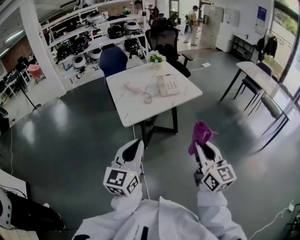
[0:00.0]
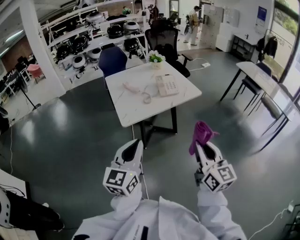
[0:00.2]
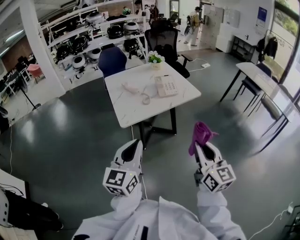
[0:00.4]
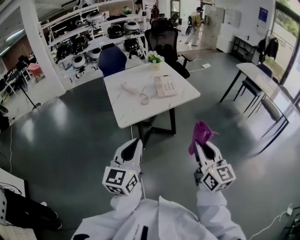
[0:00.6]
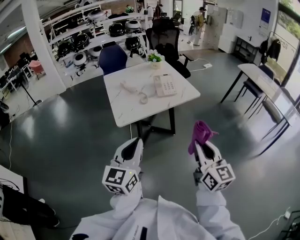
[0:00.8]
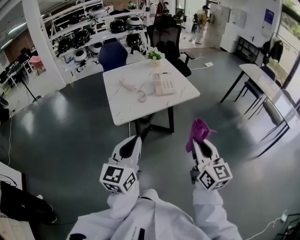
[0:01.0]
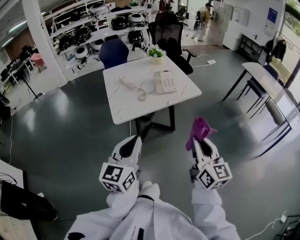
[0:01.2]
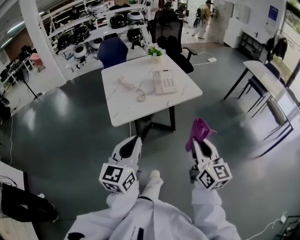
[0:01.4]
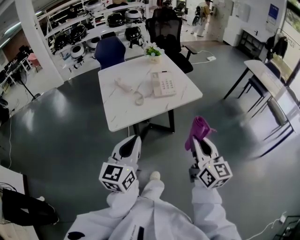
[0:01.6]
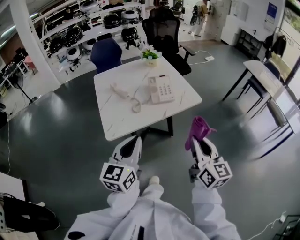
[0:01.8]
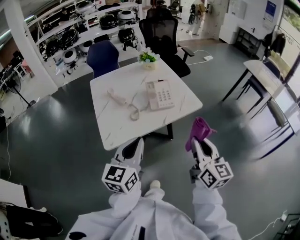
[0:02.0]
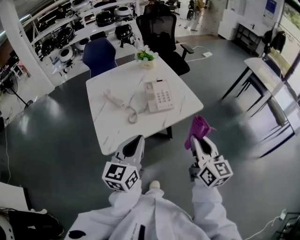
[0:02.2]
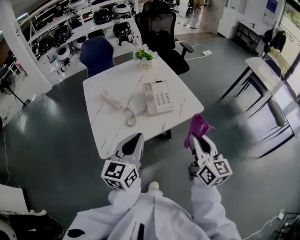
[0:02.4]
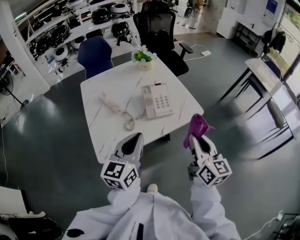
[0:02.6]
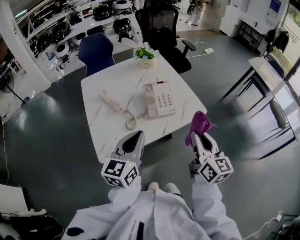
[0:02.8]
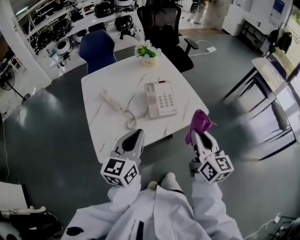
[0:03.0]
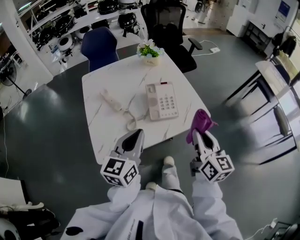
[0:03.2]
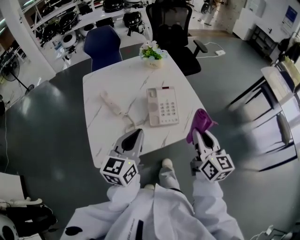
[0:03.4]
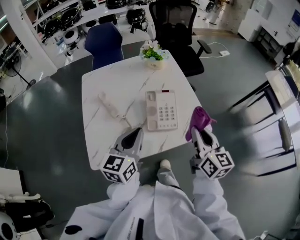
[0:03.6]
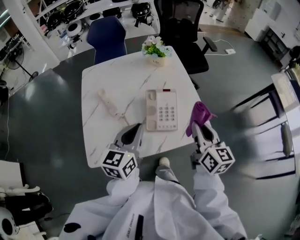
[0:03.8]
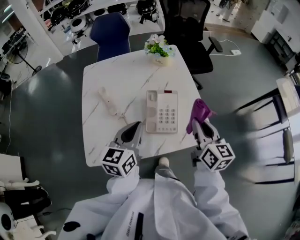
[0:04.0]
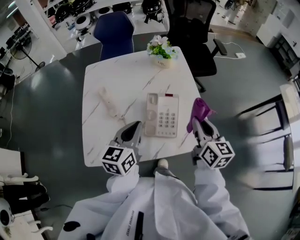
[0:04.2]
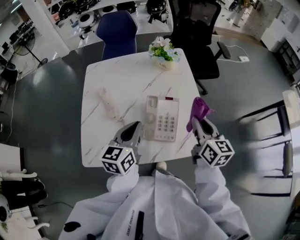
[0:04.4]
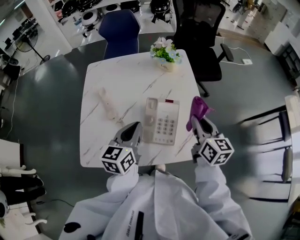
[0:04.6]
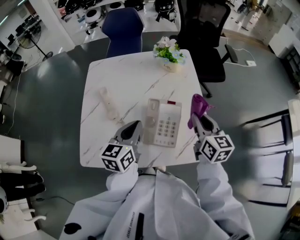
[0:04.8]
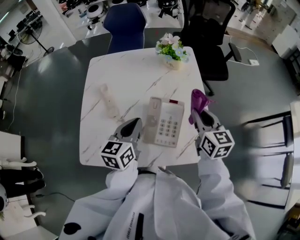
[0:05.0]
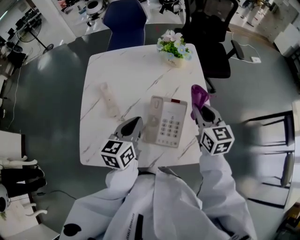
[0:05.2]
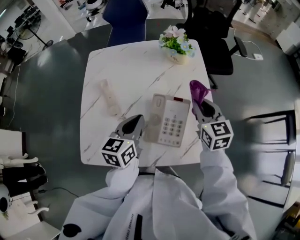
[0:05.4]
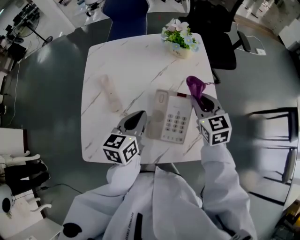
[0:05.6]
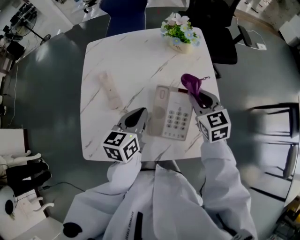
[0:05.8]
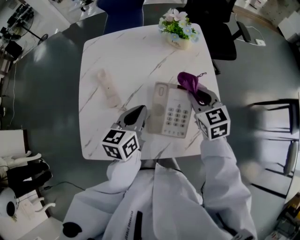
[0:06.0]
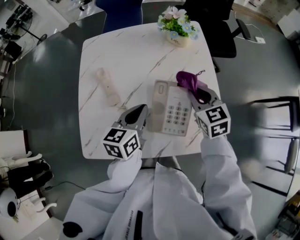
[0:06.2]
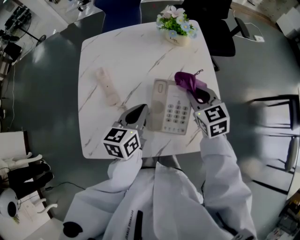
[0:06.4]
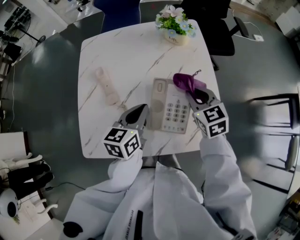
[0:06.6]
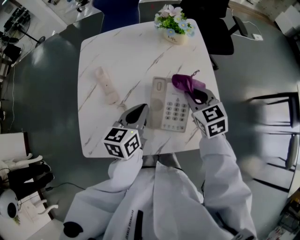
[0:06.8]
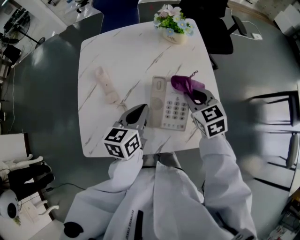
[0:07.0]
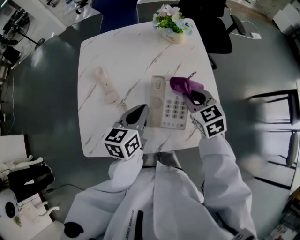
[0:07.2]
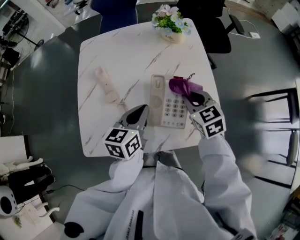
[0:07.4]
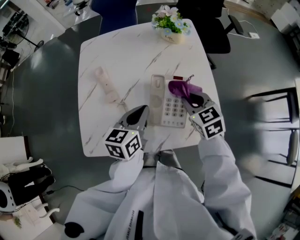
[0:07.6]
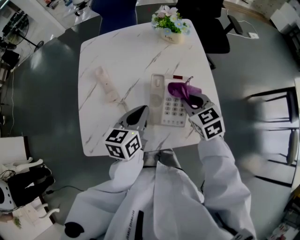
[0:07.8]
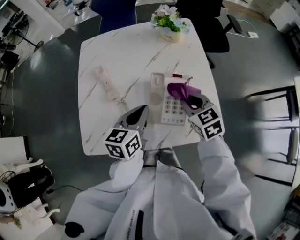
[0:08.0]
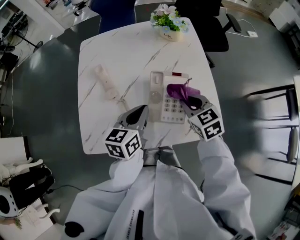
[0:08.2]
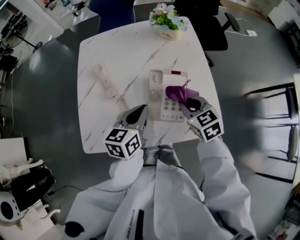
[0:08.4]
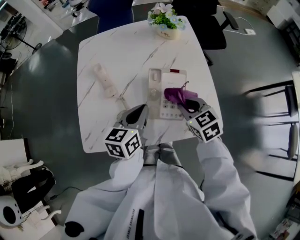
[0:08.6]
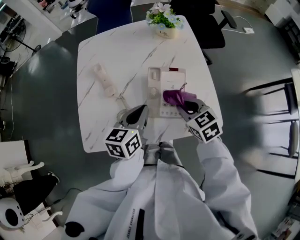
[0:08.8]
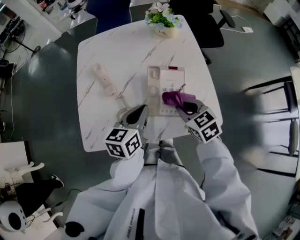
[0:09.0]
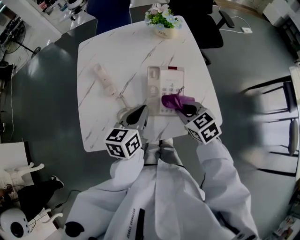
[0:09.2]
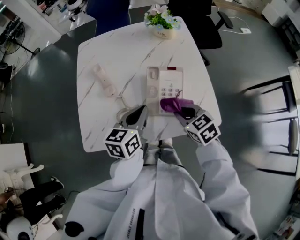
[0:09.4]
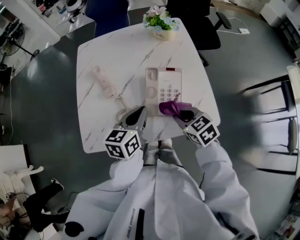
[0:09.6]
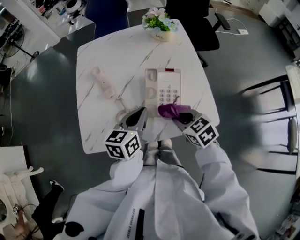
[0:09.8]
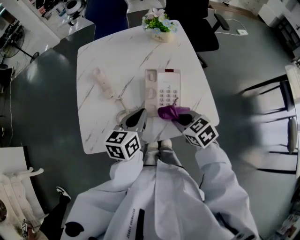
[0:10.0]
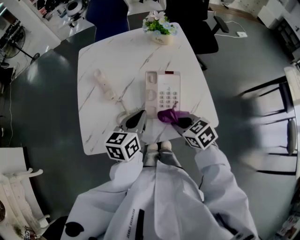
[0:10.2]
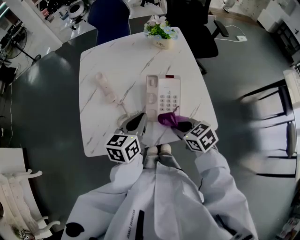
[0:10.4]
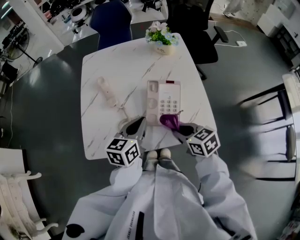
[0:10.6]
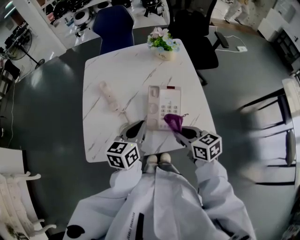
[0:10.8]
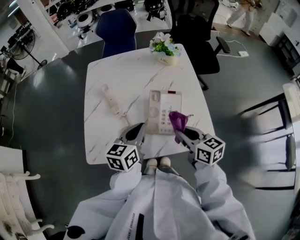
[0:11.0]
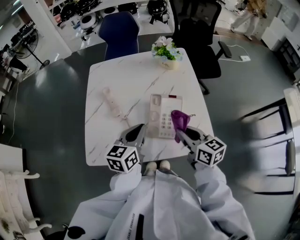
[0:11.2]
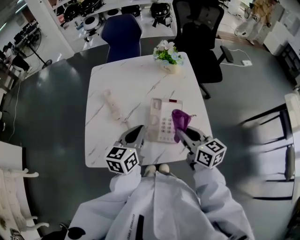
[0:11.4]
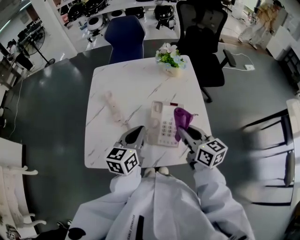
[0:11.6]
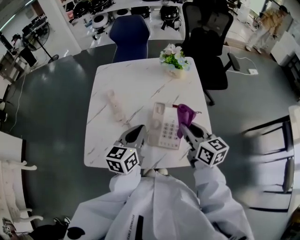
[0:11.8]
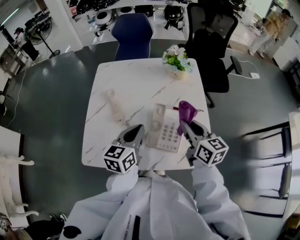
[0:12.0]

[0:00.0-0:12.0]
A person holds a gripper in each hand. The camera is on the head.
0.0 to 1.6 s: Both grippers travel together forward and to the right, about 15 cm.
1.6 to 3.0 s: The grippers both shift forward by some 25 cm.
3.0 to 4.4 s: The two grippers go some 20 cm forward. The left gripper turns by some 20 degrees.
4.4 to 6.0 s: The right gripper goes about 15 cm forward, downward and to the left, and turns by approximately 40 degrees. The left gripper is displaced downward and forward by approximately 10 cm.
6.0 to 7.6 s: The right gripper goes roughly 5 cm backward.
7.6 to 9.0 s: The right gripper heads backward, covering about 10 cm.
9.0 to 10.4 s: The right gripper heads backward, covering some 5 cm.
10.4 to 12.0 s: The right gripper shifts some 20 cm forward, upward and to the right, and turns by roughly 40 degrees. Meanwhile the left gripper is displaced forward by approximately 5 cm.

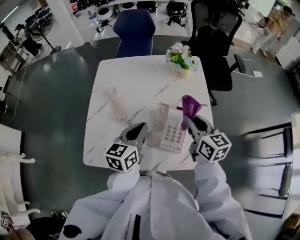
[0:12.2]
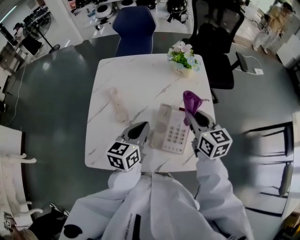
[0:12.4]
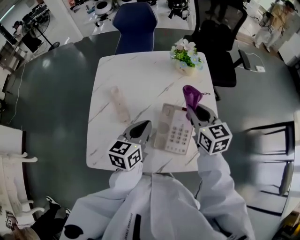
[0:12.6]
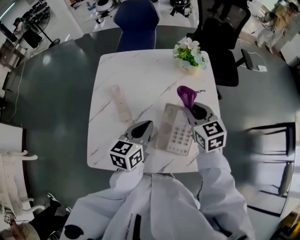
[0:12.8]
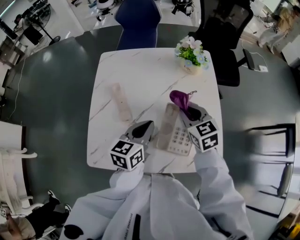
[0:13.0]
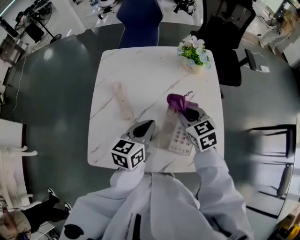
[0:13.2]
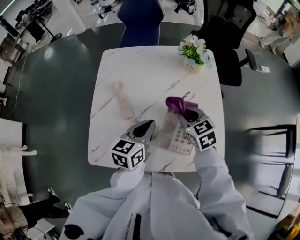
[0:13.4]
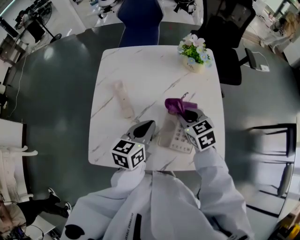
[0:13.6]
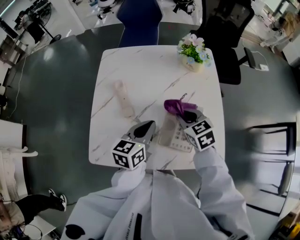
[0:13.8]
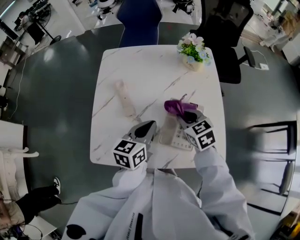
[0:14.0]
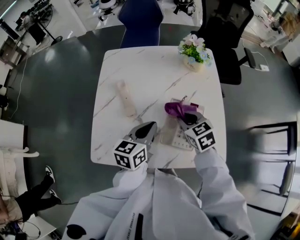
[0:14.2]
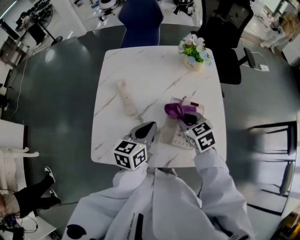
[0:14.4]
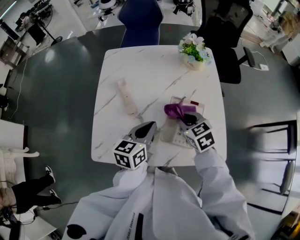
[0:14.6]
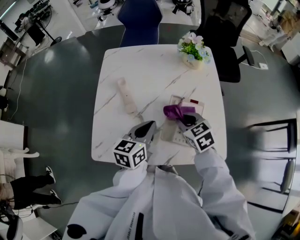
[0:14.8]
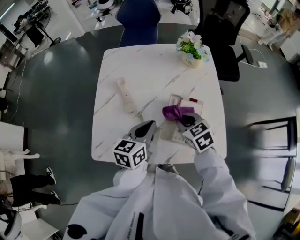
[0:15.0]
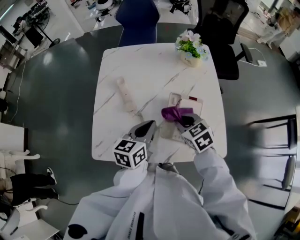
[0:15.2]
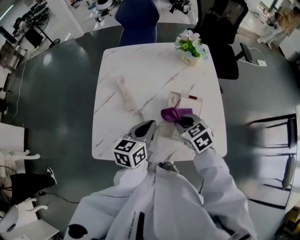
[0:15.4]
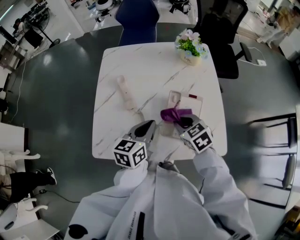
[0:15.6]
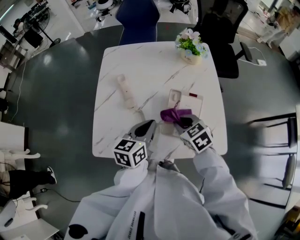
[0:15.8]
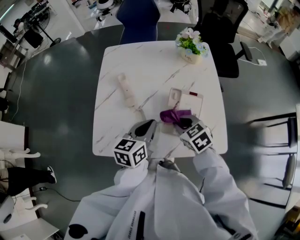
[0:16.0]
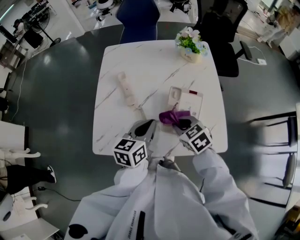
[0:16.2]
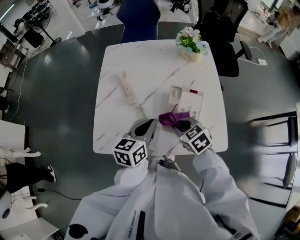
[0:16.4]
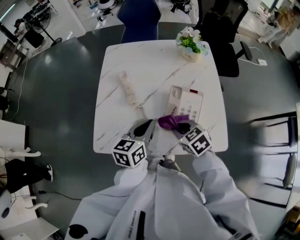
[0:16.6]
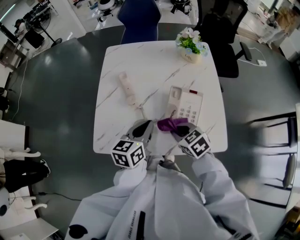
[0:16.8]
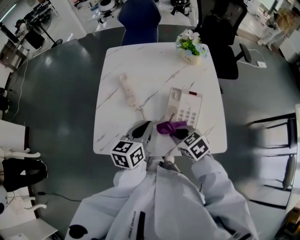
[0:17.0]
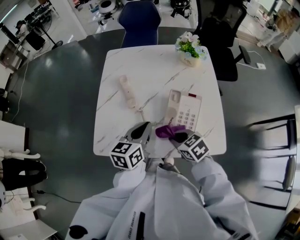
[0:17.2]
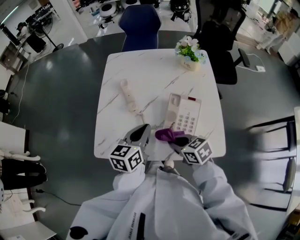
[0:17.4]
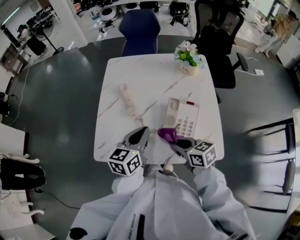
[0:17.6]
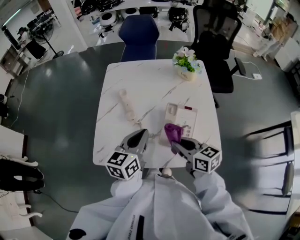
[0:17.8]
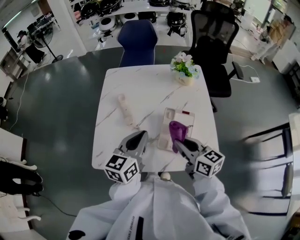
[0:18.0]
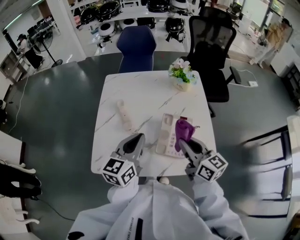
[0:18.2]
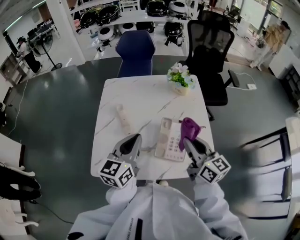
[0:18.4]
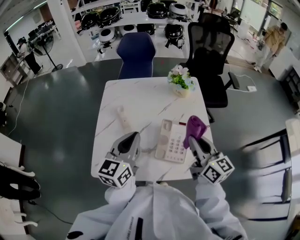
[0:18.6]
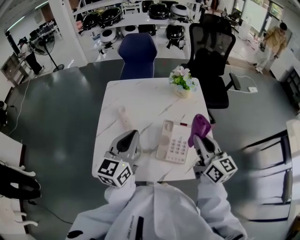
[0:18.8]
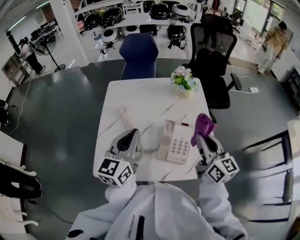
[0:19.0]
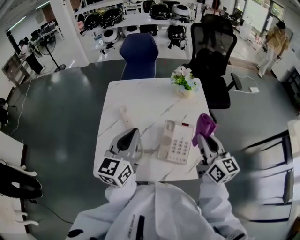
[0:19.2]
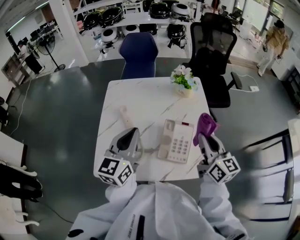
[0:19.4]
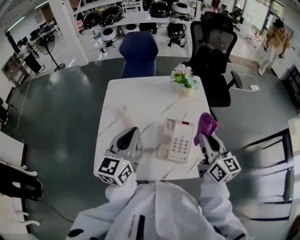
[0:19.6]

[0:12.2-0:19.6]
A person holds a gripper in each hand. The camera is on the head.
12.2 to 13.6 s: The right gripper moves downward and to the left, roughly 10 cm, and turns by about 30 degrees.
13.6 to 15.2 s: The right gripper is displaced backward by roughly 5 cm.
15.2 to 16.6 s: The right gripper travels backward by some 5 cm.
16.6 to 18.2 s: The left gripper is displaced upward by about 10 cm. The right gripper travels upward and to the right by about 15 cm, and points its fingers approximately 40 degrees further upward.
18.2 to 19.6 s: The right gripper shifts some 5 cm to the right, while the left gripper shifts roughly 5 cm upward.

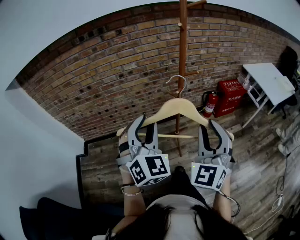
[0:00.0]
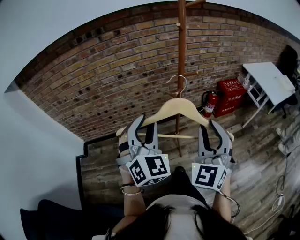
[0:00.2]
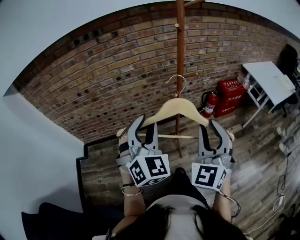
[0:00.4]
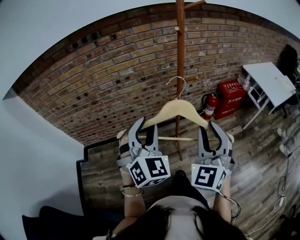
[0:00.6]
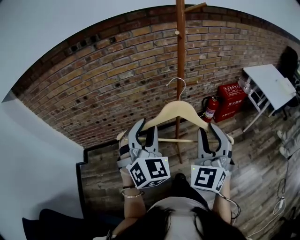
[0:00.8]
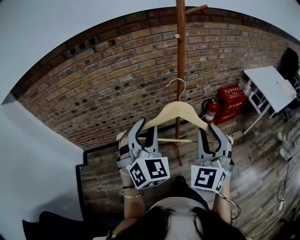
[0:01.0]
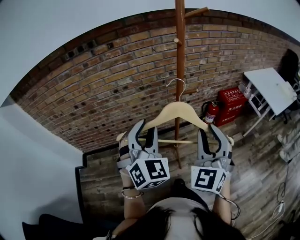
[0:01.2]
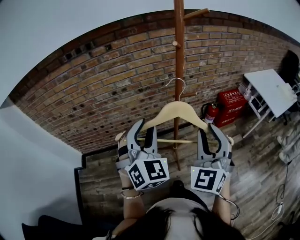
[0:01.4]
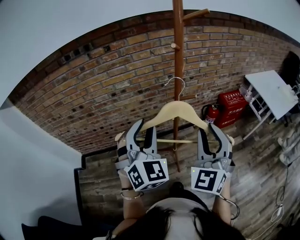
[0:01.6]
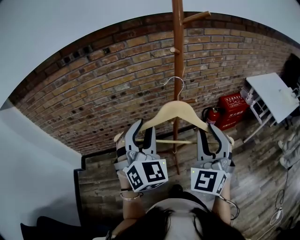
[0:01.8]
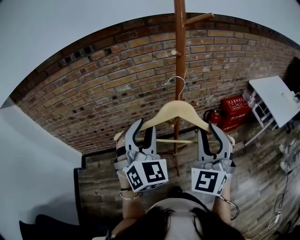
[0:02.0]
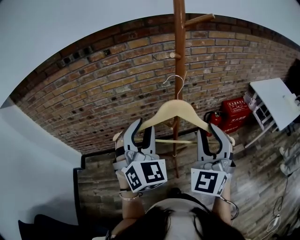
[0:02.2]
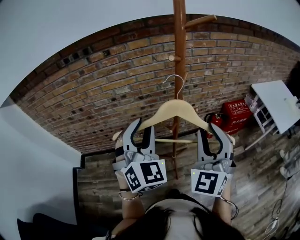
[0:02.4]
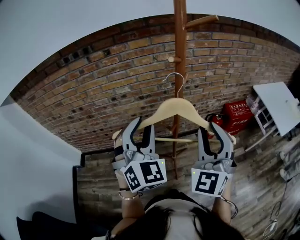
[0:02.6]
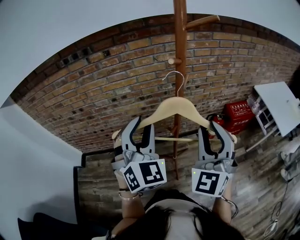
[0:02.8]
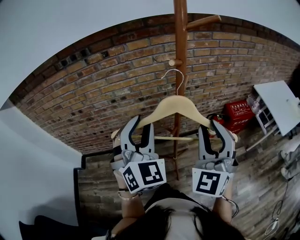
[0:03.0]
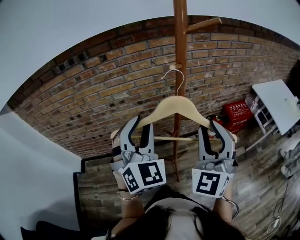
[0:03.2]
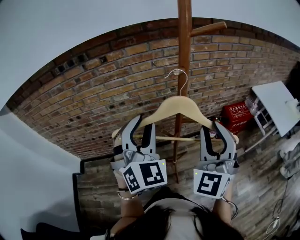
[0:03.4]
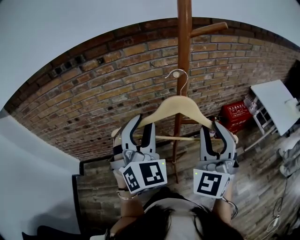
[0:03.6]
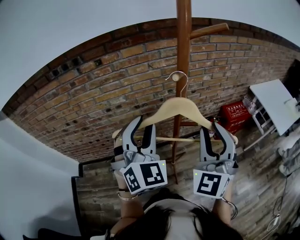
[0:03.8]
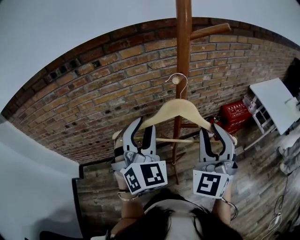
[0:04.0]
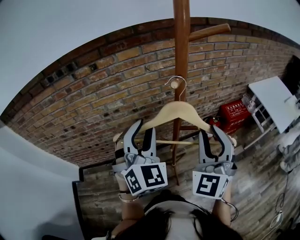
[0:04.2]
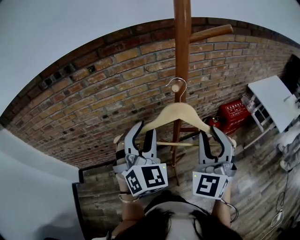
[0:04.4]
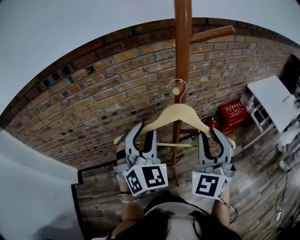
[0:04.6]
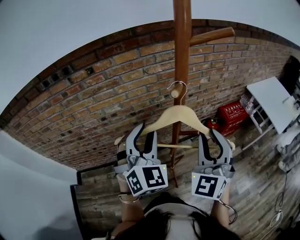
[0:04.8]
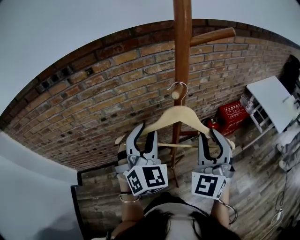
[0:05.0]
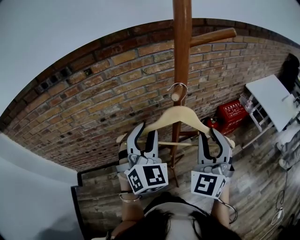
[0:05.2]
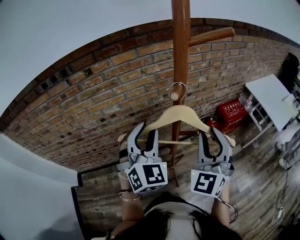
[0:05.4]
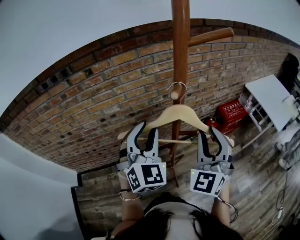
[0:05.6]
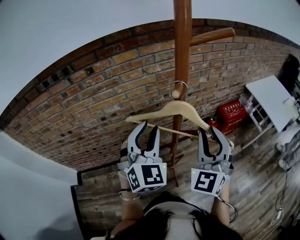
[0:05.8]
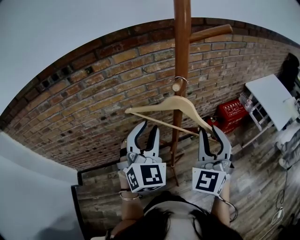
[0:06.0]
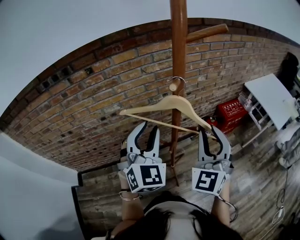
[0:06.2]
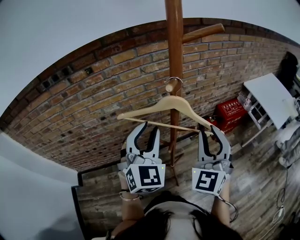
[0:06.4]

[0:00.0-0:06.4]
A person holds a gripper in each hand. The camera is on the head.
0.0 to 1.6 s: Both grippers travel together forward, some 15 cm.
1.6 to 3.2 s: Both grippers move forward, some 10 cm.
3.2 to 4.8 s: Both grippers move forward, some 10 cm.
4.8 to 6.4 s: The grippers stay close to where they were, moving slightly.
